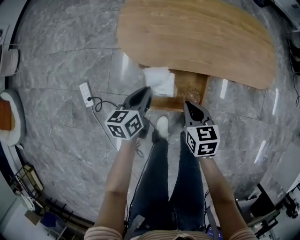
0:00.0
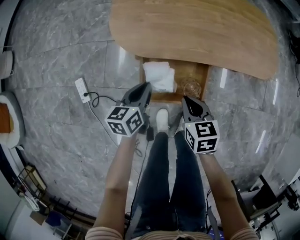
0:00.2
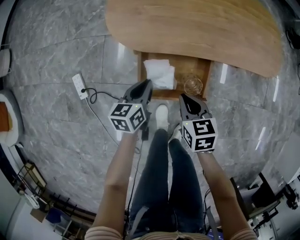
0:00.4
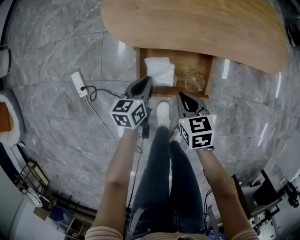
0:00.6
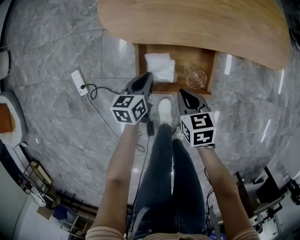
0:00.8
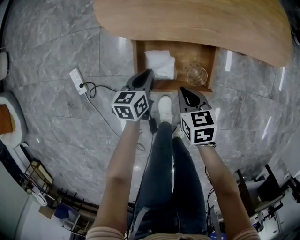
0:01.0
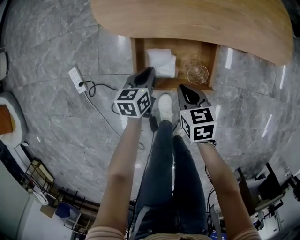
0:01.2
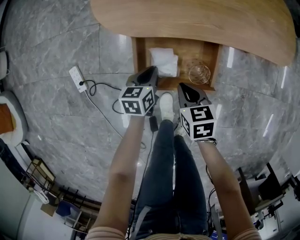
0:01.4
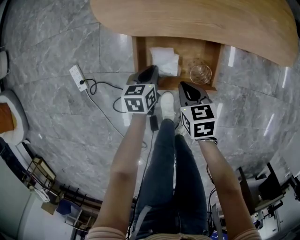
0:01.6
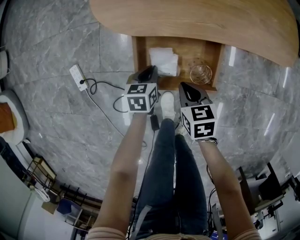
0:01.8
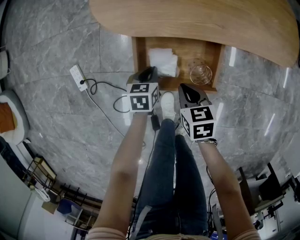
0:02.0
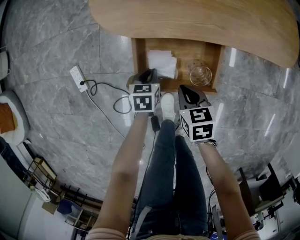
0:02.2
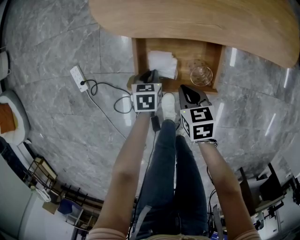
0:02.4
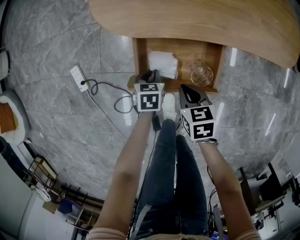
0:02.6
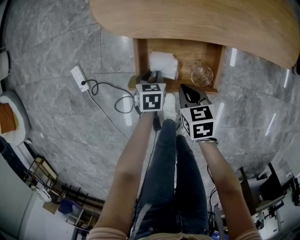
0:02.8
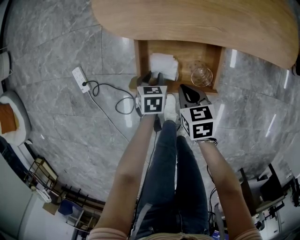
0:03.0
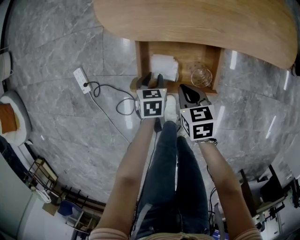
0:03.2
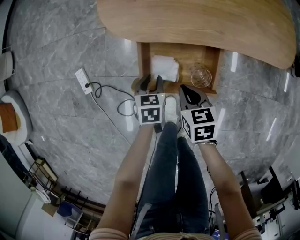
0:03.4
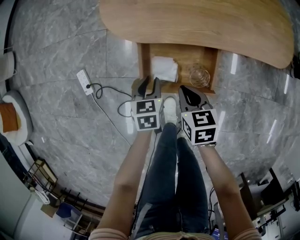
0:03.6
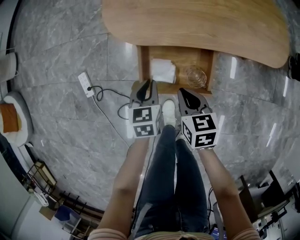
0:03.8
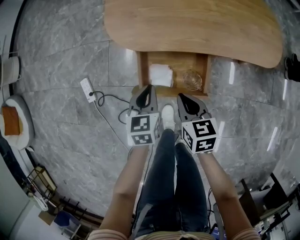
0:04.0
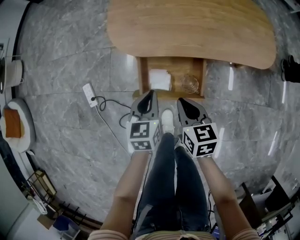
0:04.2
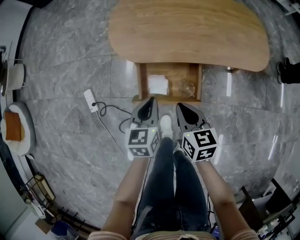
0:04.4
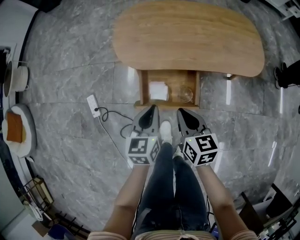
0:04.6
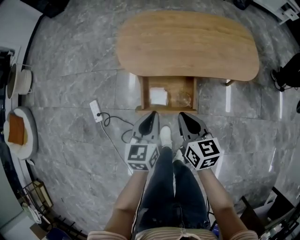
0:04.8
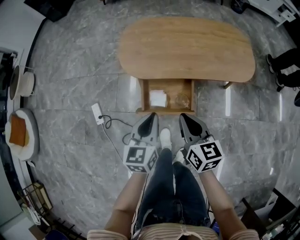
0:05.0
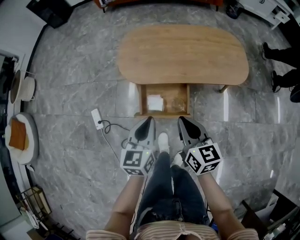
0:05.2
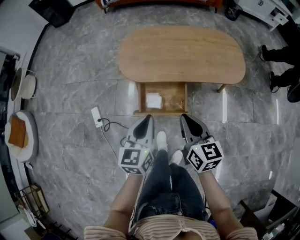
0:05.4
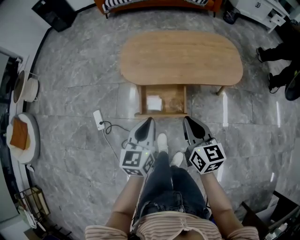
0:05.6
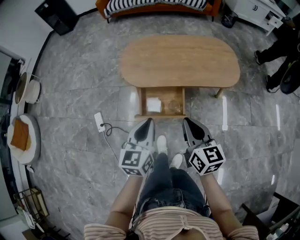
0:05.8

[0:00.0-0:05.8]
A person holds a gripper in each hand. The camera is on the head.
0:00.0 to 0:01.4: The two grippers go about 15 cm downward.
0:01.4 to 0:02.8: The left gripper moves some 5 cm, and turns by roughly 20 degrees.
0:02.8 to 0:04.4: Both grippers move upward, approximately 25 cm. The right gripper changes its angle by approximately 20 degrees; the left gripper tilts its fingers about 30 degrees upward.
0:04.4 to 0:05.8: The grippers both shift upward and backward by roughly 25 cm. The right gripper turns by approximately 20 degrees.

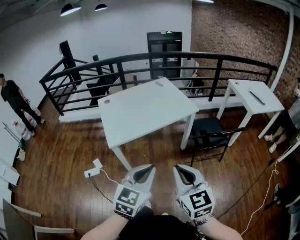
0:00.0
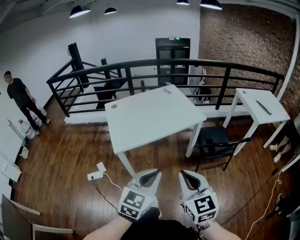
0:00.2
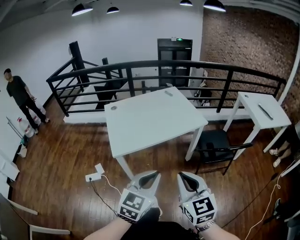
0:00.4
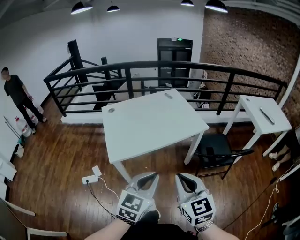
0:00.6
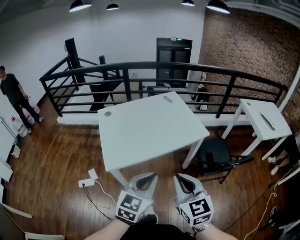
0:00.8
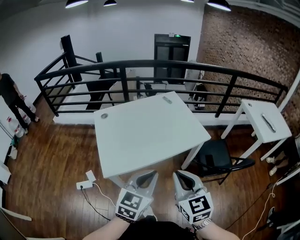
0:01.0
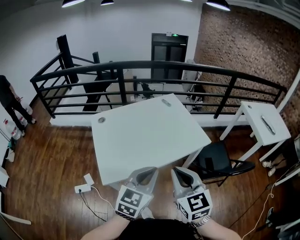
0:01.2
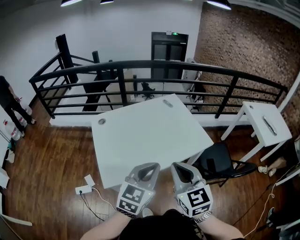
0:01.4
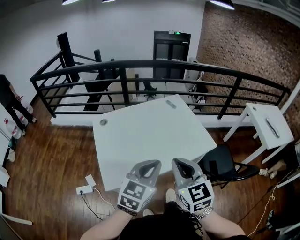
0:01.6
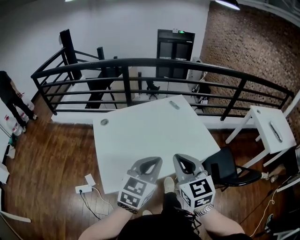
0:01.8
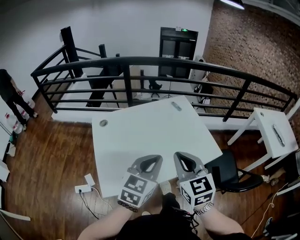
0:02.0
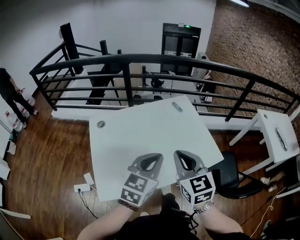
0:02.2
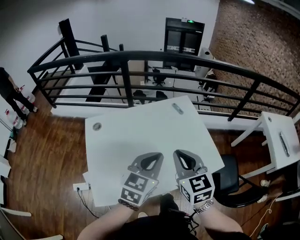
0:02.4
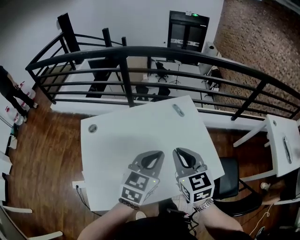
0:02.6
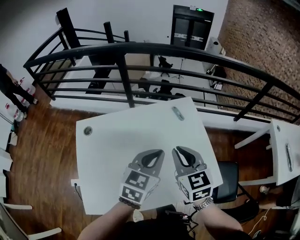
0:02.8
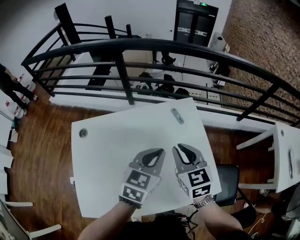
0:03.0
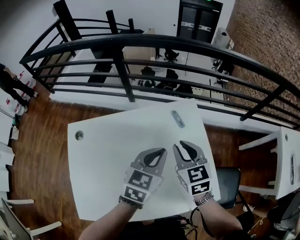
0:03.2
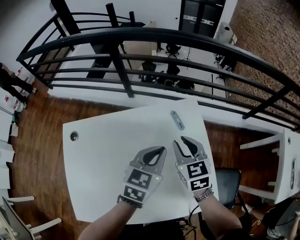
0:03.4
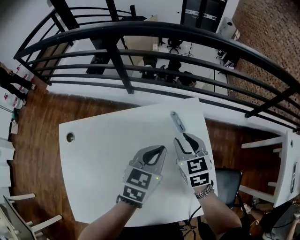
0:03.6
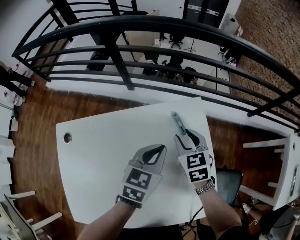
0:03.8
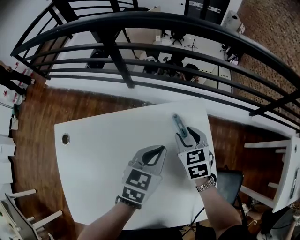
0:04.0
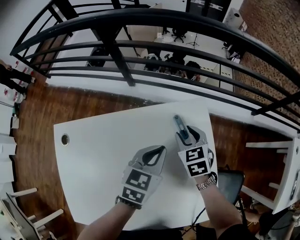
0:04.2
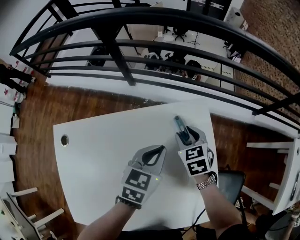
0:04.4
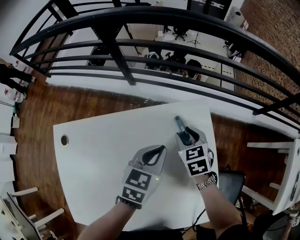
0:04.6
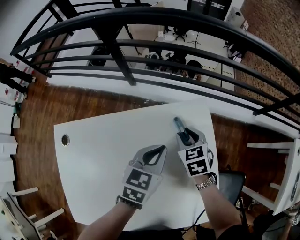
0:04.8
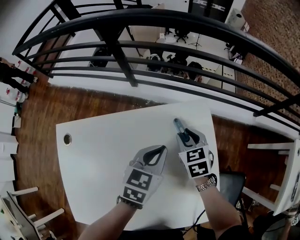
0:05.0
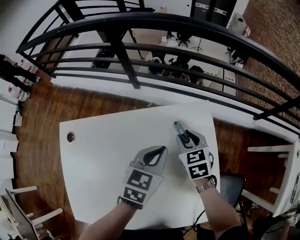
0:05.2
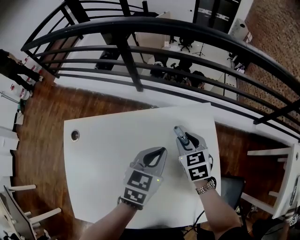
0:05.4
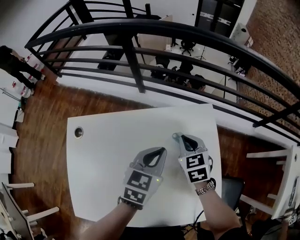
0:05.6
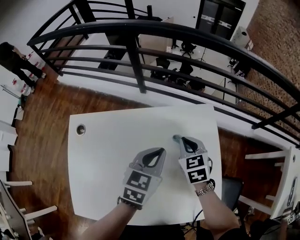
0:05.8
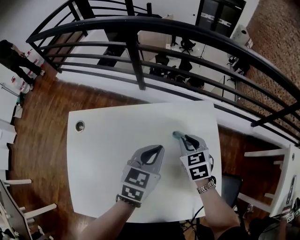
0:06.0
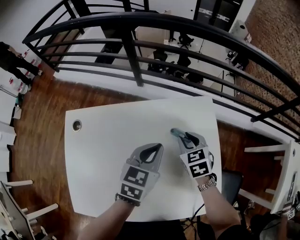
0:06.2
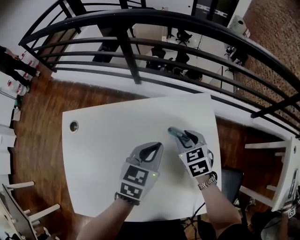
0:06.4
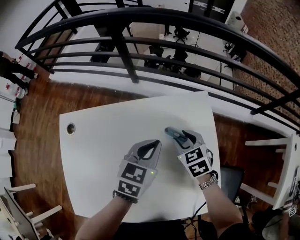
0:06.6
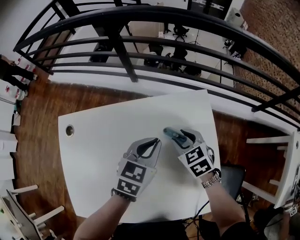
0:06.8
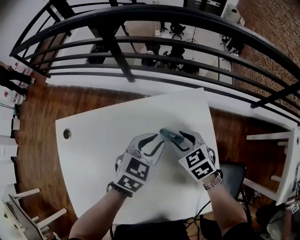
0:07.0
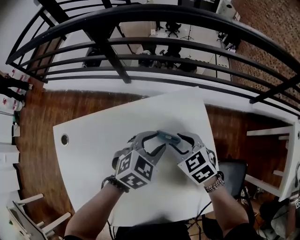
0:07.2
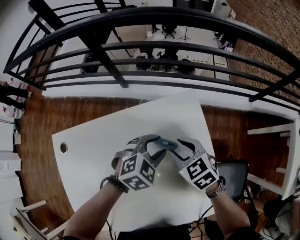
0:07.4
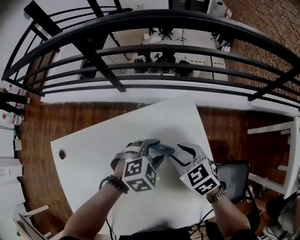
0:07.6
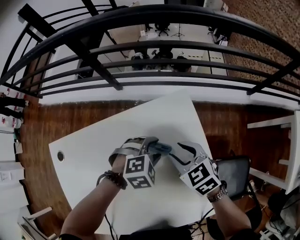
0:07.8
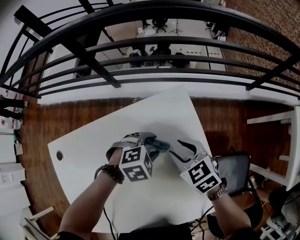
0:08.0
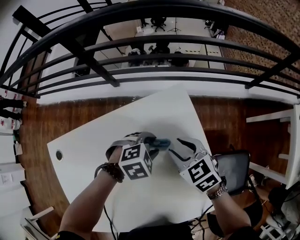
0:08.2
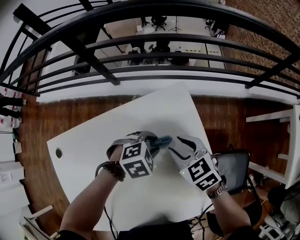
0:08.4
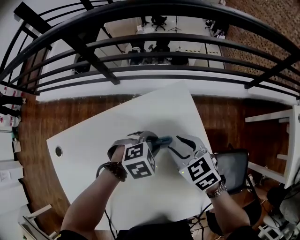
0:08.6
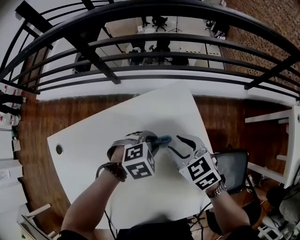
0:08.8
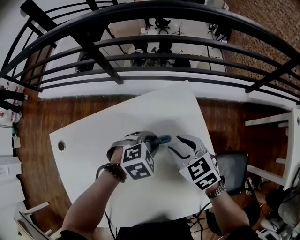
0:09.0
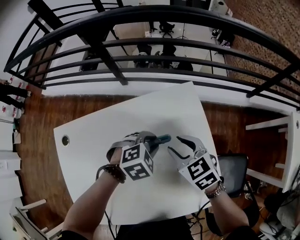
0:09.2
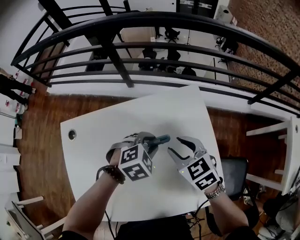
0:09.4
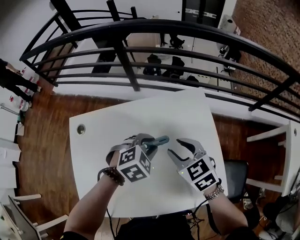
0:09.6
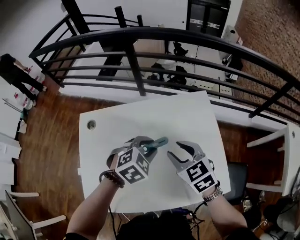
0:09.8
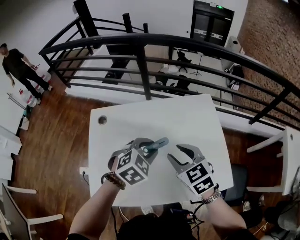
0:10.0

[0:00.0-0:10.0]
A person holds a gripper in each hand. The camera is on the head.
0:00.0 to 0:01.4: The two grippers go about 35 cm forward.
0:01.4 to 0:02.8: Both grippers travel together forward, some 35 cm.
0:02.8 to 0:04.2: The grippers both shift forward and downward by roughly 30 cm. The right gripper swivels roughly 20 degrees, and opens its fingers.
0:04.2 to 0:05.8: The left gripper is displaced to the left, backward and upward by roughly 10 cm. Meanwhile the right gripper travels backward, upward and to the left by some 10 cm, and closes its fingers.
0:05.8 to 0:07.2: The right gripper opens. Meanwhile the left gripper moves downward and to the right, approximately 10 cm, rotates some 40 degrees, and opens.
0:07.2 to 0:08.6: The left gripper travels downward by some 5 cm, and changes its angle by some 30 degrees.
0:08.6 to 0:10.0: Both grippers travel together backward, upward and to the left, some 30 cm. The left gripper rotates approximately 30 degrees.

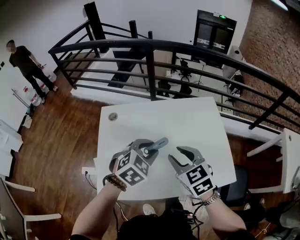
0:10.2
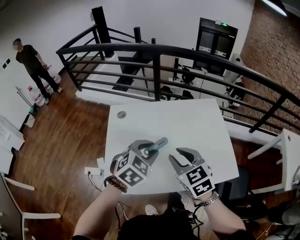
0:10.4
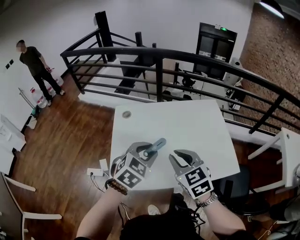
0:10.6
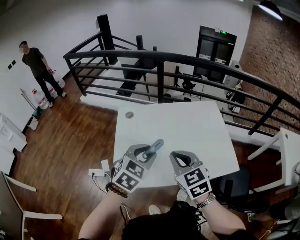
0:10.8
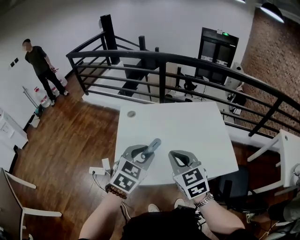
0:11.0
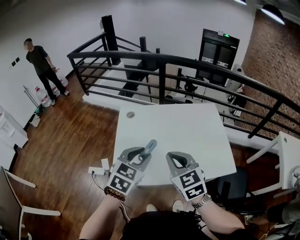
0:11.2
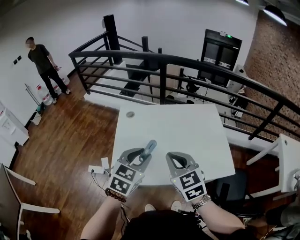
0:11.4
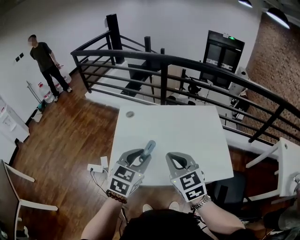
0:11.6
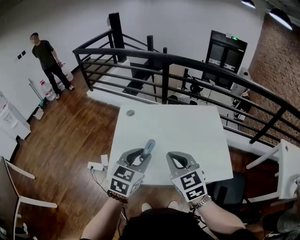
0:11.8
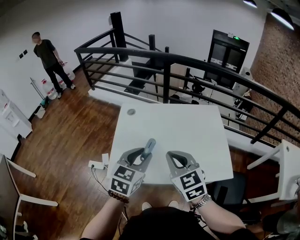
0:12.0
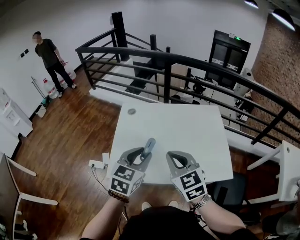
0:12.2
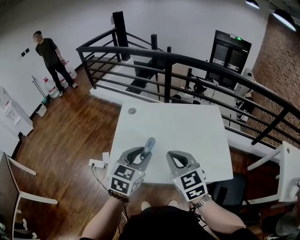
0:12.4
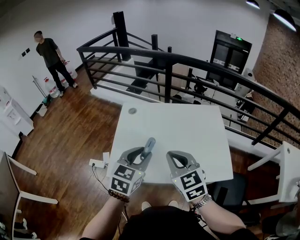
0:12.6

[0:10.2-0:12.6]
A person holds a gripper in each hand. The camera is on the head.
0:10.2 to 0:11.4: The left gripper travels backward, to the left and upward by approximately 20 cm, and swivels approximately 30 degrees. Meanwhile the right gripper is displaced backward, upward and to the left by about 15 cm, and closes.
0:11.4 to 0:12.6: There are only small adjustments of the grippers.

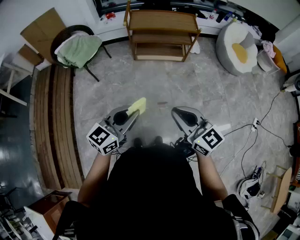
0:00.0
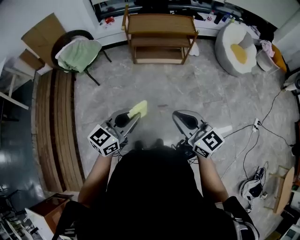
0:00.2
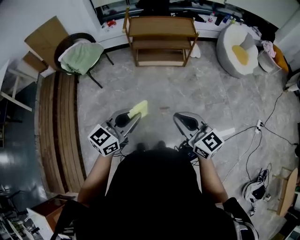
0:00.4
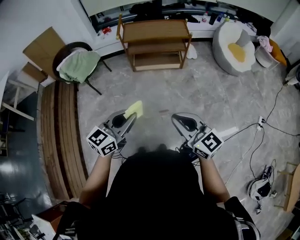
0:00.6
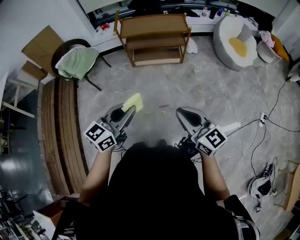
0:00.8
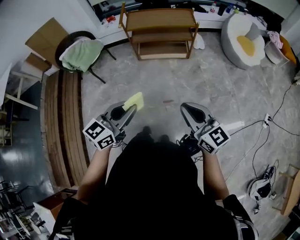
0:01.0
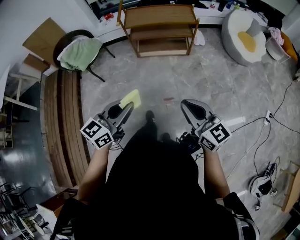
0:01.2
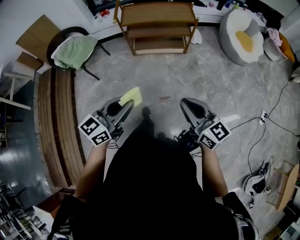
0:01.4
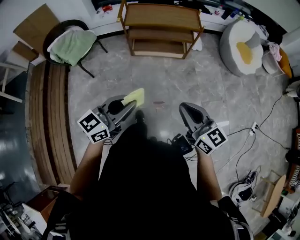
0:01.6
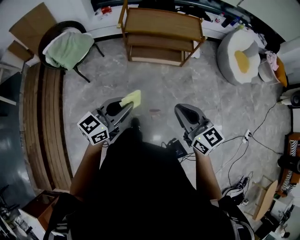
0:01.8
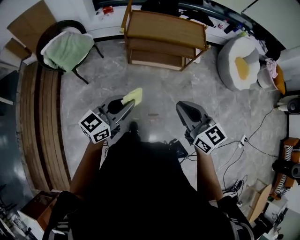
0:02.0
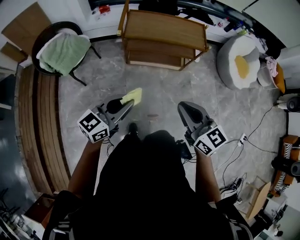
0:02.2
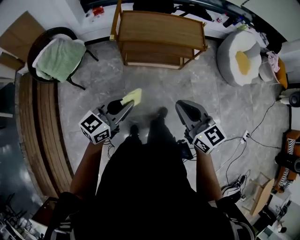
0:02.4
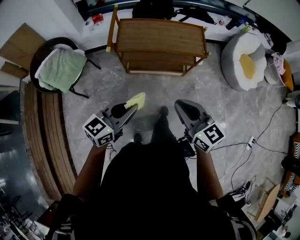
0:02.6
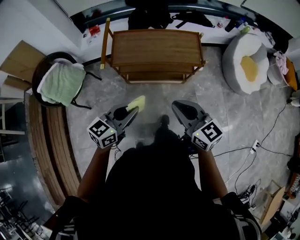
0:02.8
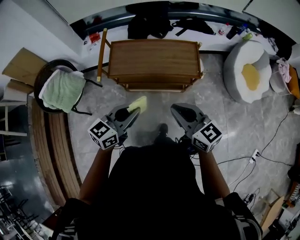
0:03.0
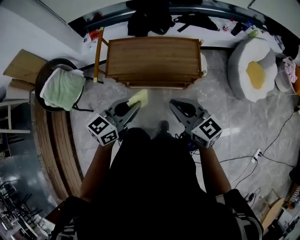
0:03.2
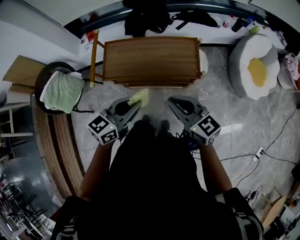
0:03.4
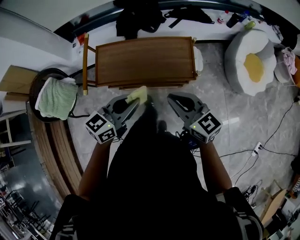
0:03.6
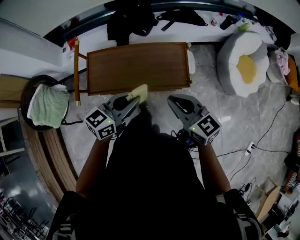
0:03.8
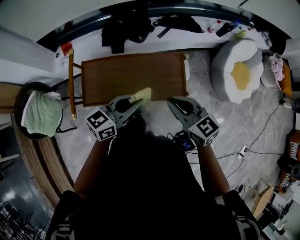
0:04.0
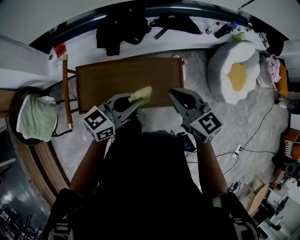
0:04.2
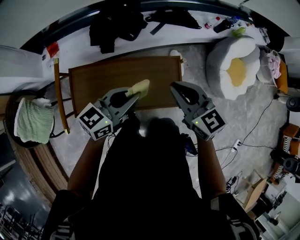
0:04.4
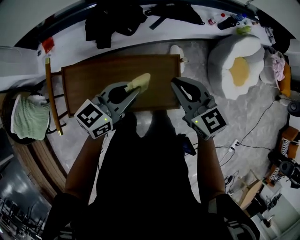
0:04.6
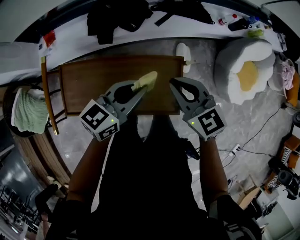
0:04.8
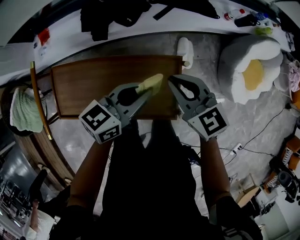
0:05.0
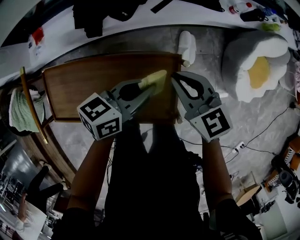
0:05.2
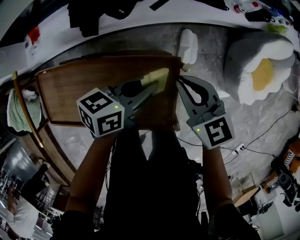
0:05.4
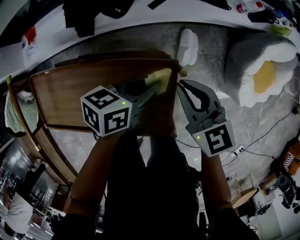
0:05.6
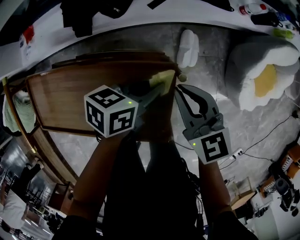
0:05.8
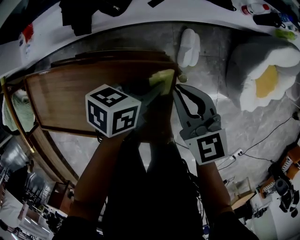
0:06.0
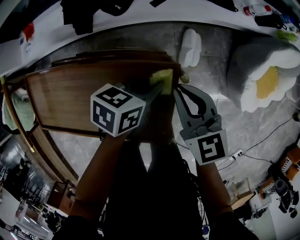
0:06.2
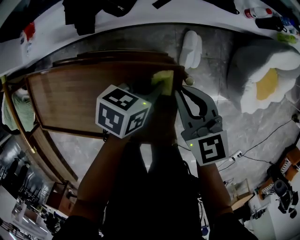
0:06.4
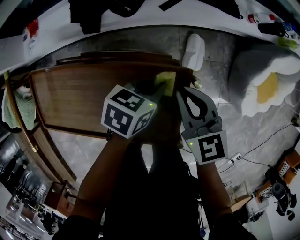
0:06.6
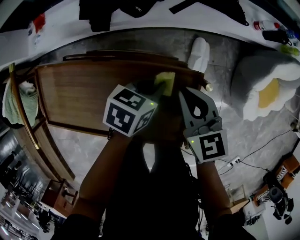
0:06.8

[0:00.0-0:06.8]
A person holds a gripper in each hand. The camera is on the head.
0:00.0 to 0:01.4: The left gripper heads forward, covering roughly 5 cm. Meanwhile the right gripper shifts approximately 10 cm to the right and forward.
0:01.4 to 0:02.8: The two grippers go roughly 40 cm forward.
0:02.8 to 0:04.0: The right gripper is displaced forward by roughly 30 cm, while the left gripper moves forward and to the right, some 35 cm.
0:04.0 to 0:05.4: Both grippers travel together forward, downward and to the right, about 30 cm. The left gripper swivels approximately 30 degrees.
0:05.4 to 0:06.8: The left gripper travels downward by approximately 10 cm, and changes its angle by some 20 degrees. The right gripper is displaced downward by approximately 5 cm.
